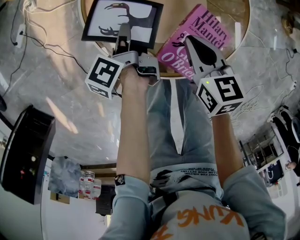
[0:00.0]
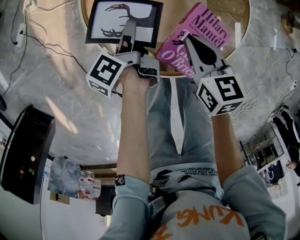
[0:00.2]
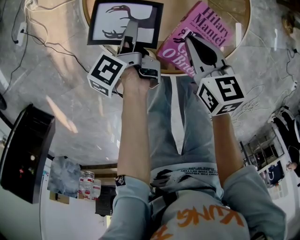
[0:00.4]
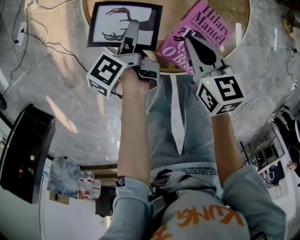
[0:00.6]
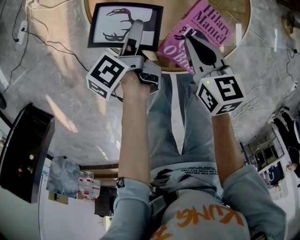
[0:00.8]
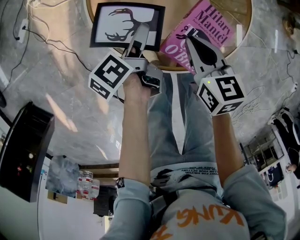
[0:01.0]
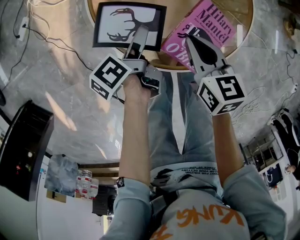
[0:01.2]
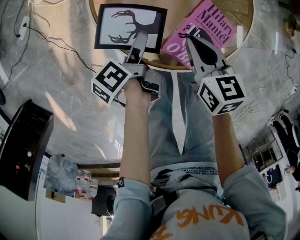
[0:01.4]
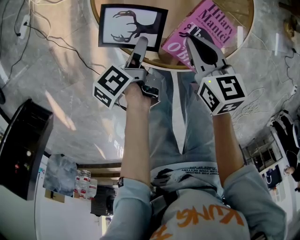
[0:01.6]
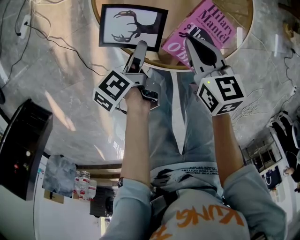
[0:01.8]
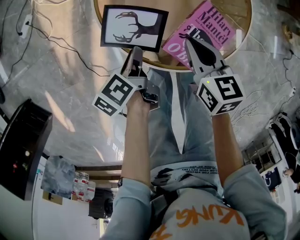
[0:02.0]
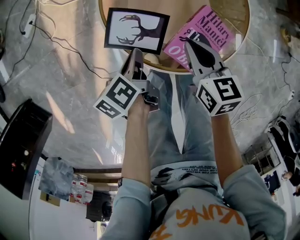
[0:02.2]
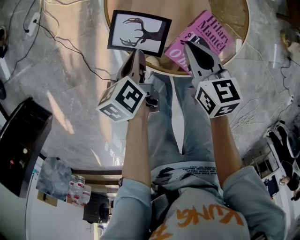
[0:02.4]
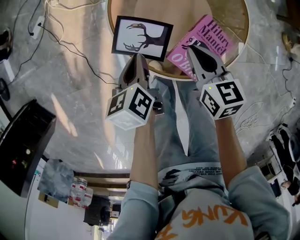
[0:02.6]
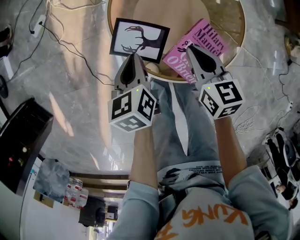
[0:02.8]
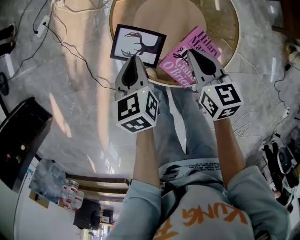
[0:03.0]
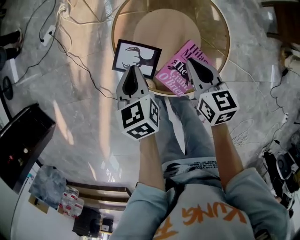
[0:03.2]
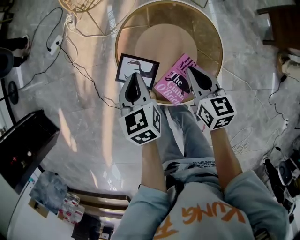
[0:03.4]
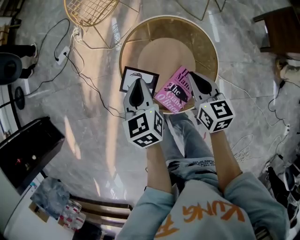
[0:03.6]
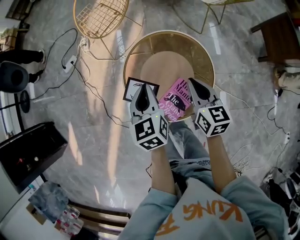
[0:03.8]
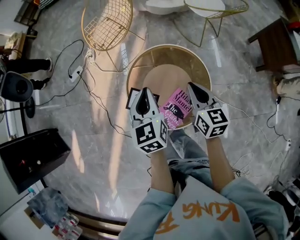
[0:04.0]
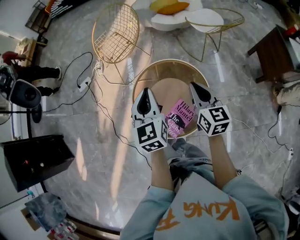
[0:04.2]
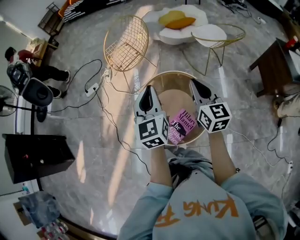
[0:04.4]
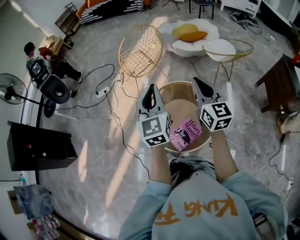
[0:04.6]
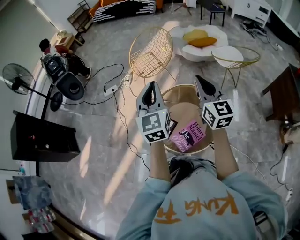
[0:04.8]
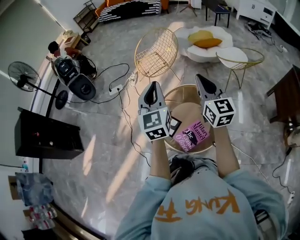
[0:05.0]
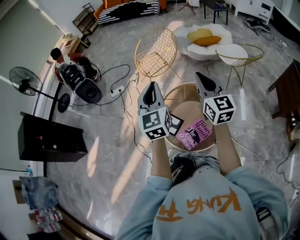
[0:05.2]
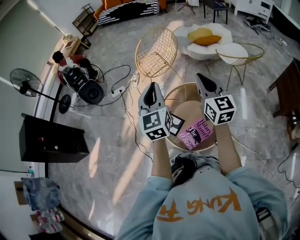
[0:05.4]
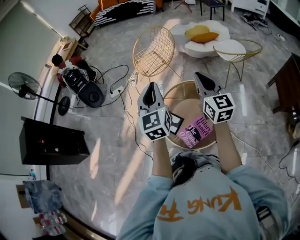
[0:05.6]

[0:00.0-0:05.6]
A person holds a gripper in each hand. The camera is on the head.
0:00.0 to 0:01.4: The left gripper heads backward, covering some 10 cm, and opens its fingers.
0:01.4 to 0:02.8: The left gripper moves upward, some 10 cm, twists approximately 40 degrees clockwise, seen from behind, and closes; the right gripper goes approximately 5 cm upward.
0:02.8 to 0:04.2: The grippers both shift upward by about 35 cm. The left gripper swivels about 30 degrees, while the right gripper changes its angle by some 20 degrees.
0:04.2 to 0:05.6: The left gripper travels upward and to the left by roughly 15 cm. The right gripper moves upward, some 15 cm, and rotates about 20 degrees.

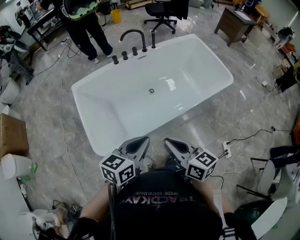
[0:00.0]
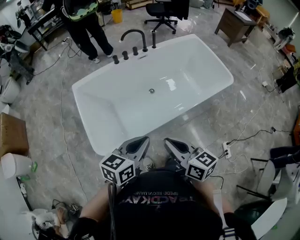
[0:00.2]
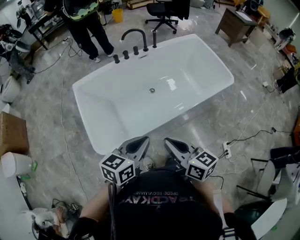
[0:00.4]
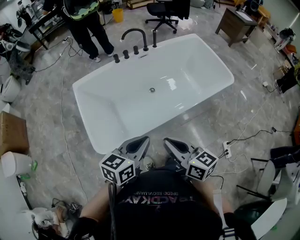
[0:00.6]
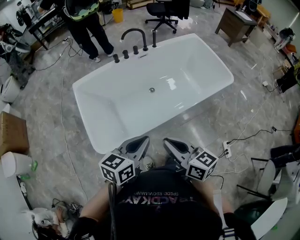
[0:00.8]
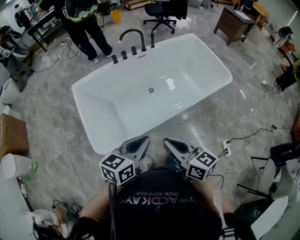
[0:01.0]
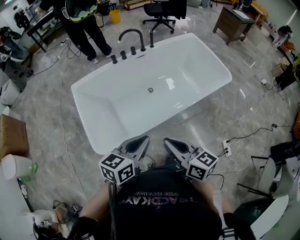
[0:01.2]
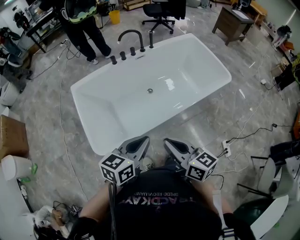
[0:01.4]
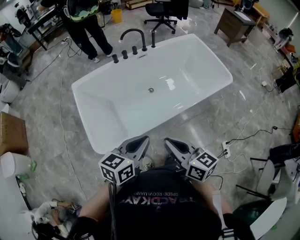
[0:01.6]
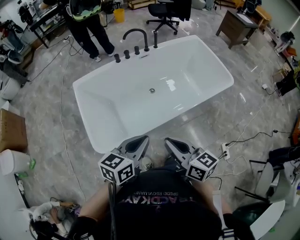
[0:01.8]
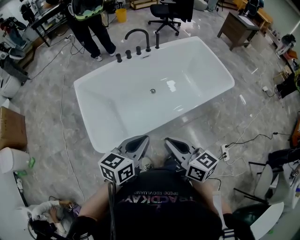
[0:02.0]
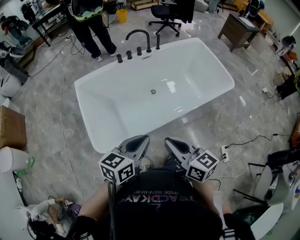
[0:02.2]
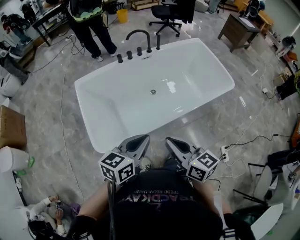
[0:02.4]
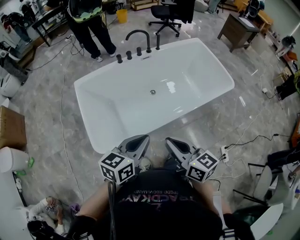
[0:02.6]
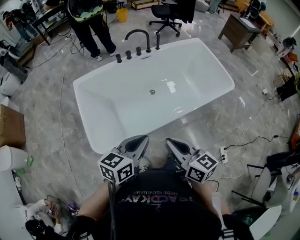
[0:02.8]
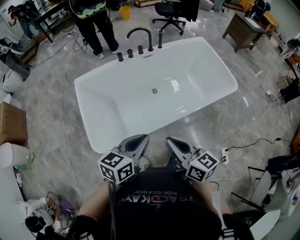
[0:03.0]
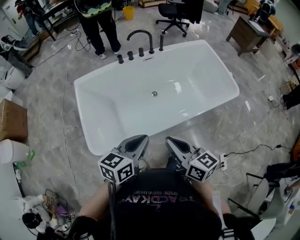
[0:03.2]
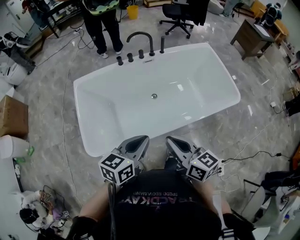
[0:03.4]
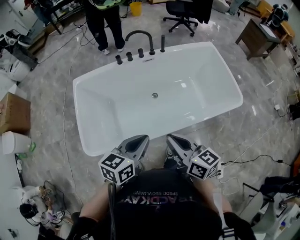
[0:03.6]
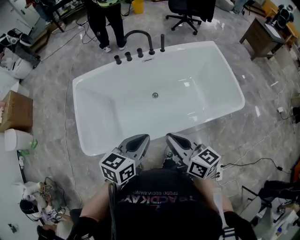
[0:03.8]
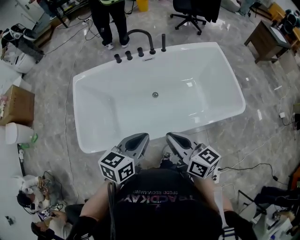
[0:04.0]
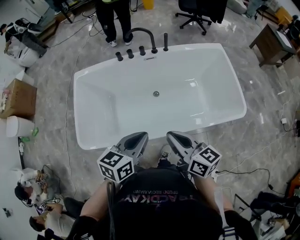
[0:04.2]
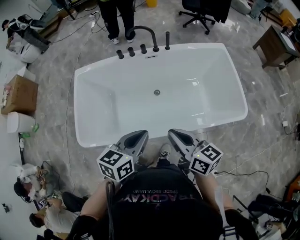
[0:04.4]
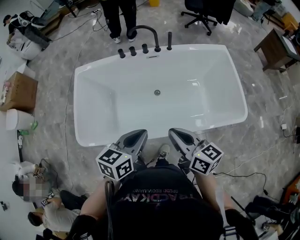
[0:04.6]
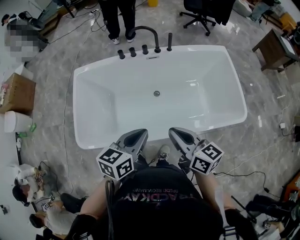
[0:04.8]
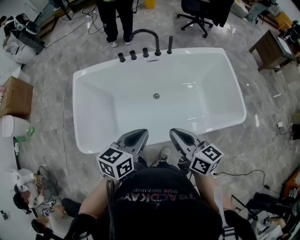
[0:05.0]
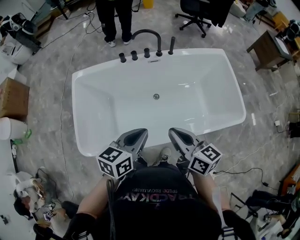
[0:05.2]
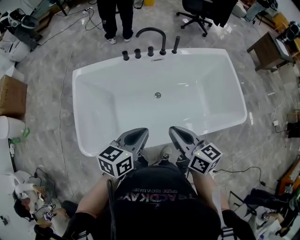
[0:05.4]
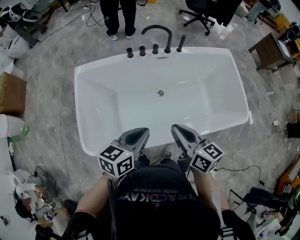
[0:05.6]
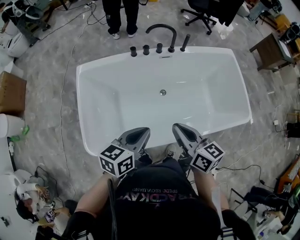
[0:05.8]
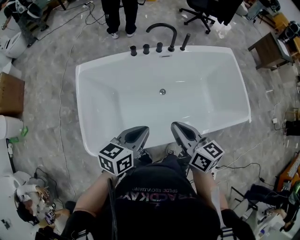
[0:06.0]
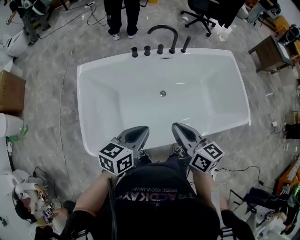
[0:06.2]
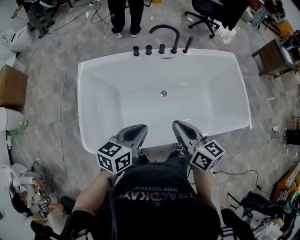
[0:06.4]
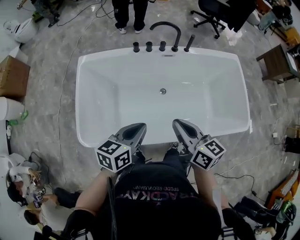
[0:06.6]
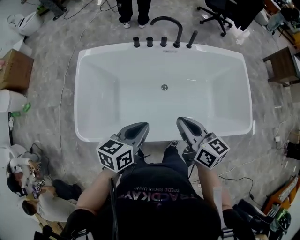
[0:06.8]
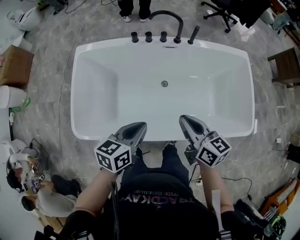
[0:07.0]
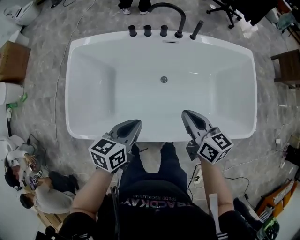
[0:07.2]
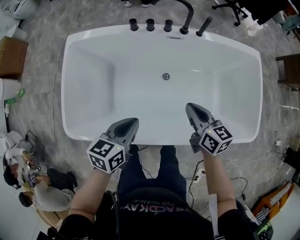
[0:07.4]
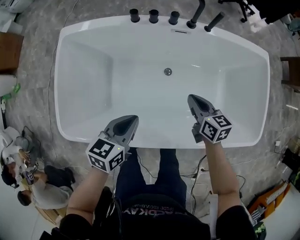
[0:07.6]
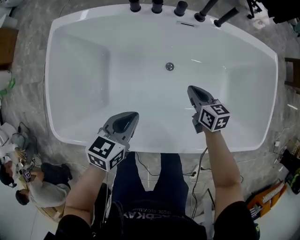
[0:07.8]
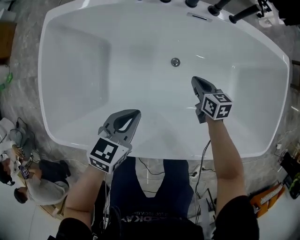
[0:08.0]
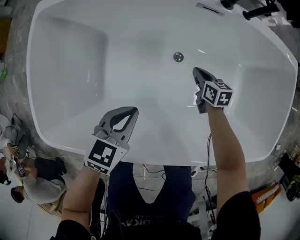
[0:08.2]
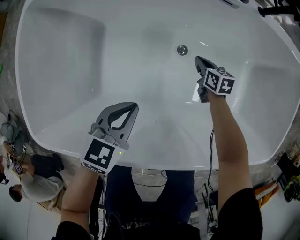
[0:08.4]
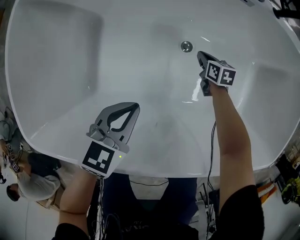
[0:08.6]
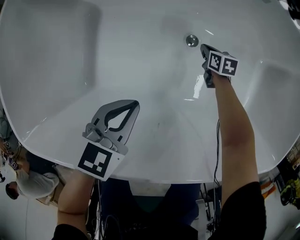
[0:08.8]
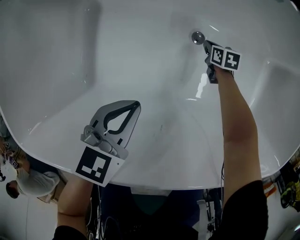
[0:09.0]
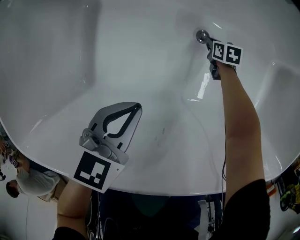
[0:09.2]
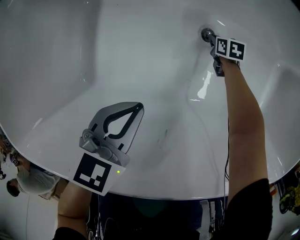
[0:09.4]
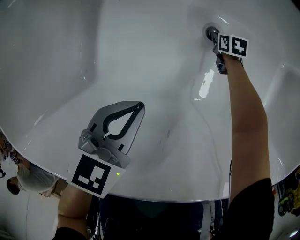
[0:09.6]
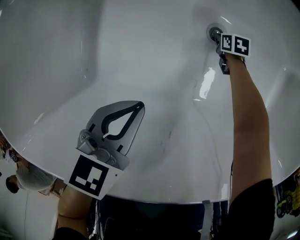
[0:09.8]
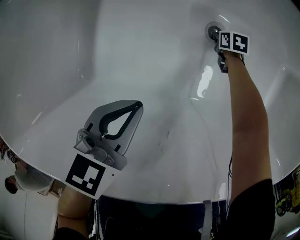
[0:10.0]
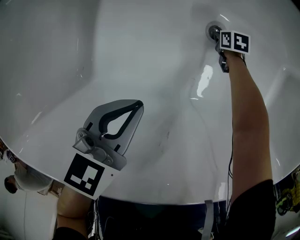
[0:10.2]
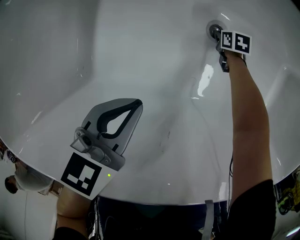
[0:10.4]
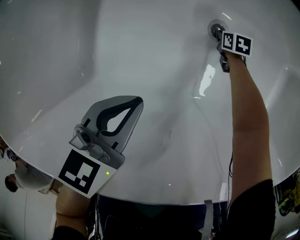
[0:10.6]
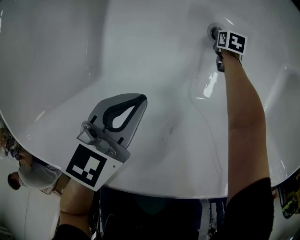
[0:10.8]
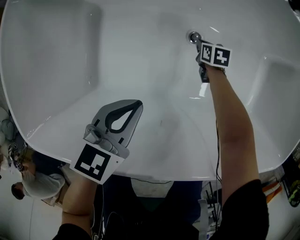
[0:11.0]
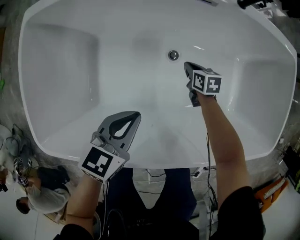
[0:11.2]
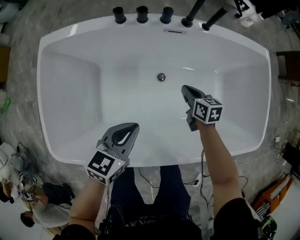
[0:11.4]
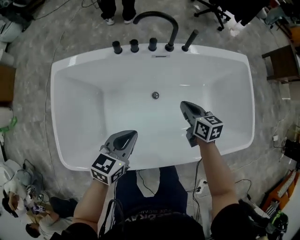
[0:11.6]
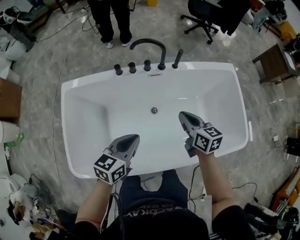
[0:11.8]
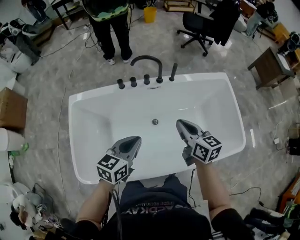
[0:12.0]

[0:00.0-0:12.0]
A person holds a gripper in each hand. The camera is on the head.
0:00.0 to 0:03.0: The grippers make only small movements.
0:03.0 to 0:04.4: Both grippers move to the right and forward, some 25 cm.
0:04.4 to 0:06.0: The right gripper is displaced to the left and forward by some 15 cm. The left gripper is displaced to the left by approximately 15 cm.
0:06.0 to 0:07.6: The right gripper heads downward, forward and to the right, covering some 30 cm, and swivels roughly 20 degrees; the left gripper goes about 15 cm downward and forward.
0:07.6 to 0:09.0: The left gripper heads downward, covering about 25 cm. Meanwhile the right gripper goes roughly 50 cm downward, and turns by roughly 30 degrees.
0:09.0 to 0:10.4: The right gripper moves downward, roughly 10 cm.
0:10.4 to 0:12.0: The right gripper travels upward by approximately 80 cm, and tilts its fingers some 50 degrees upward. The left gripper heads upward, covering some 40 cm, and swivels roughly 20 degrees.

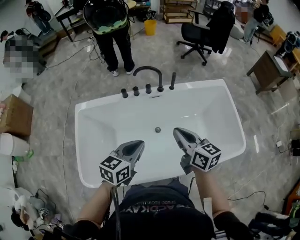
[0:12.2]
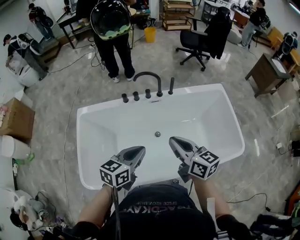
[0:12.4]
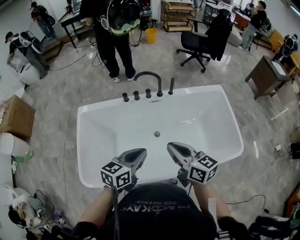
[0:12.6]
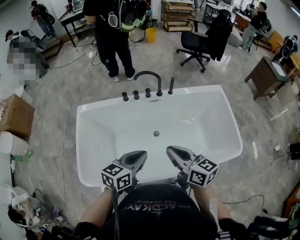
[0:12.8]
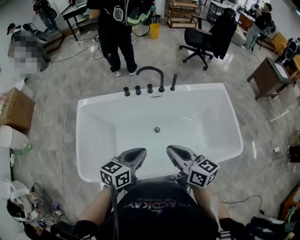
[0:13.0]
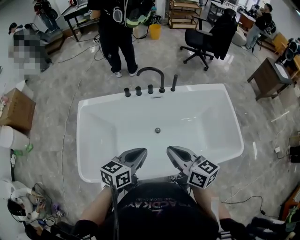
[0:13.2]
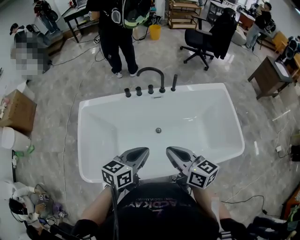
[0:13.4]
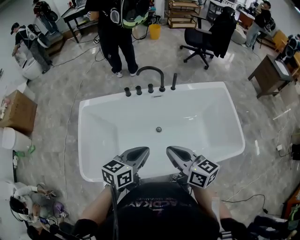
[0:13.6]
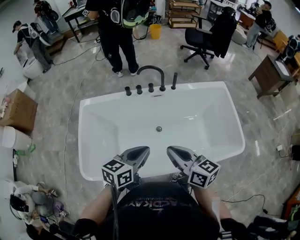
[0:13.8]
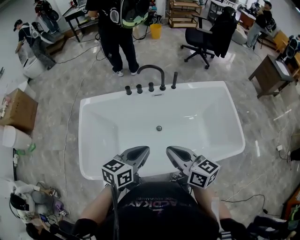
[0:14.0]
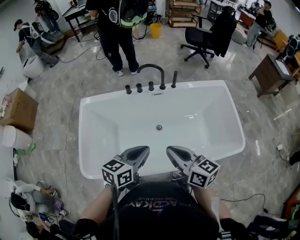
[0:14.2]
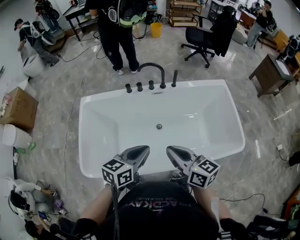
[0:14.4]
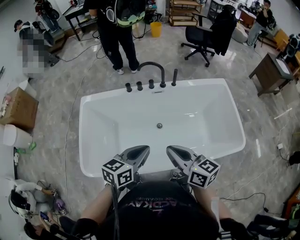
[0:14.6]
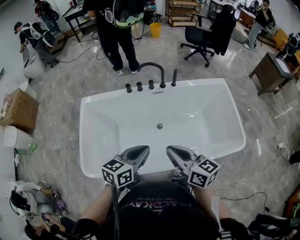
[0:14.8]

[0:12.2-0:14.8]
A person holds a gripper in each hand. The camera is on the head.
0:12.2 to 0:13.4: The left gripper heads backward, covering approximately 5 cm. The right gripper goes approximately 10 cm backward.
0:13.4 to 0:14.8: The grippers move only a little.

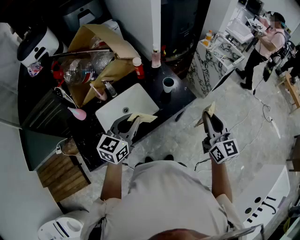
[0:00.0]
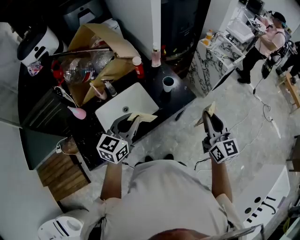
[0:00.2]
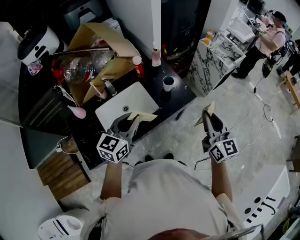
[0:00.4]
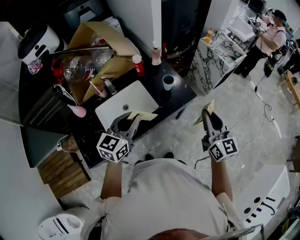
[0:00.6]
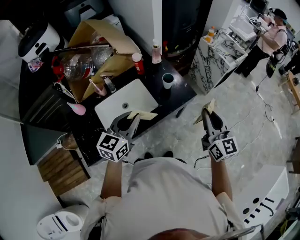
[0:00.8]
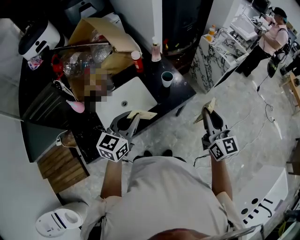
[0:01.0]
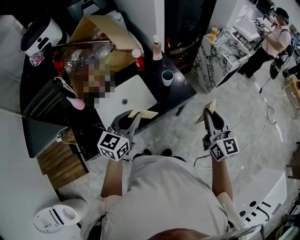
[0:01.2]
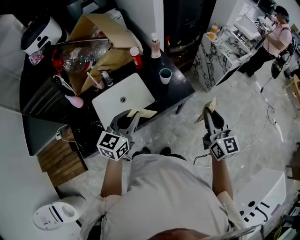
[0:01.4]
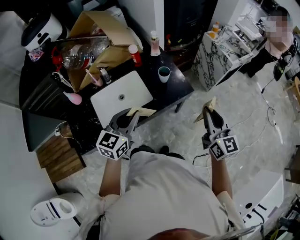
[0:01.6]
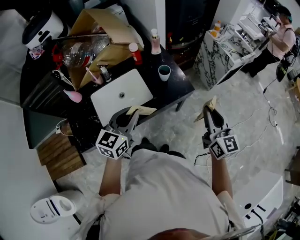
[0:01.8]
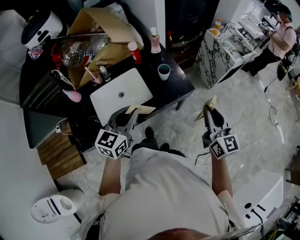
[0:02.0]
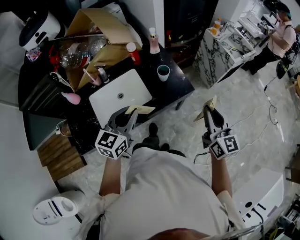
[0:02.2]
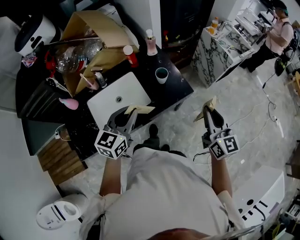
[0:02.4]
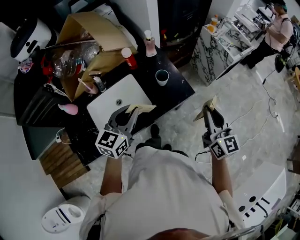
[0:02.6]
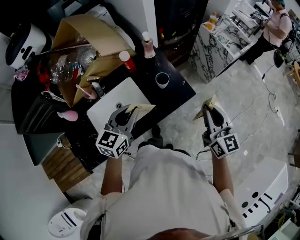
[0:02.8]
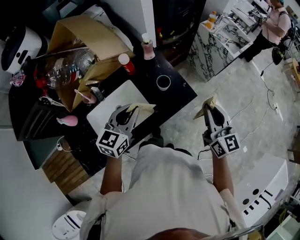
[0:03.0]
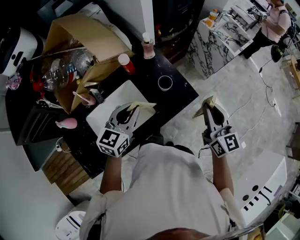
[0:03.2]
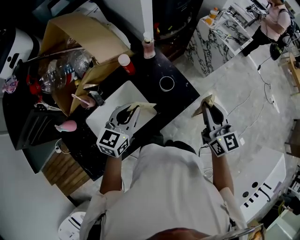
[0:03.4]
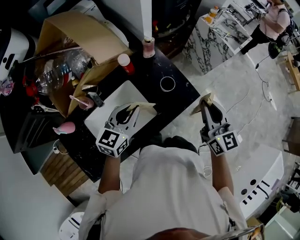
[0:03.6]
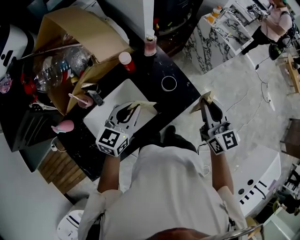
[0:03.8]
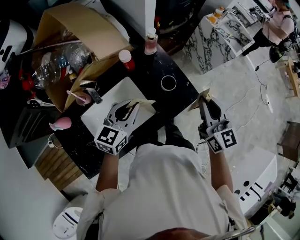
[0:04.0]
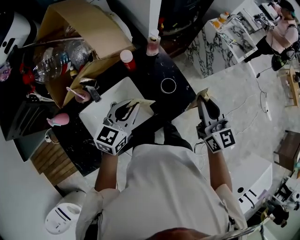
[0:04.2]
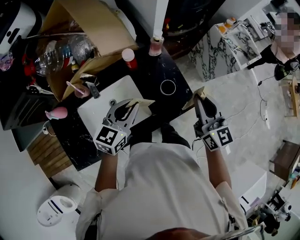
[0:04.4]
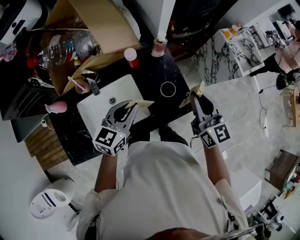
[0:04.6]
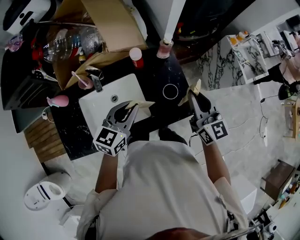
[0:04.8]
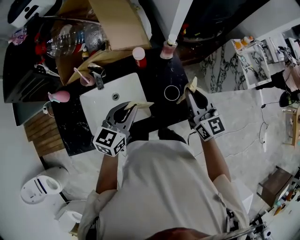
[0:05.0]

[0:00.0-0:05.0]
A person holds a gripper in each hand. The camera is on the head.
0:00.0 to 0:01.6: Both grippers travel together to the right, some 5 cm.
0:01.6 to 0:03.4: The right gripper heads forward and to the left, covering approximately 20 cm. Meanwhile the left gripper shifts about 20 cm forward.
0:03.4 to 0:05.0: The right gripper is displaced forward and to the left by about 15 cm, and turns by approximately 30 degrees; the left gripper swivels about 20 degrees.
